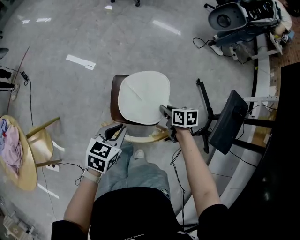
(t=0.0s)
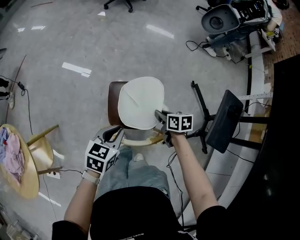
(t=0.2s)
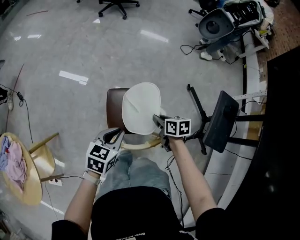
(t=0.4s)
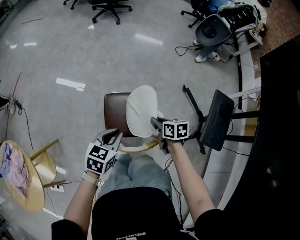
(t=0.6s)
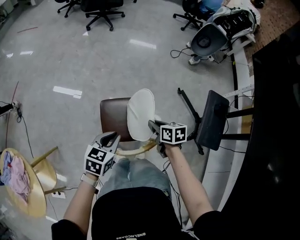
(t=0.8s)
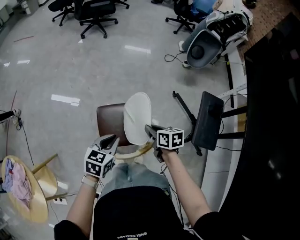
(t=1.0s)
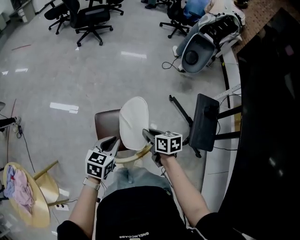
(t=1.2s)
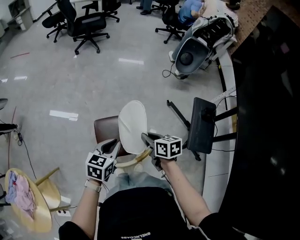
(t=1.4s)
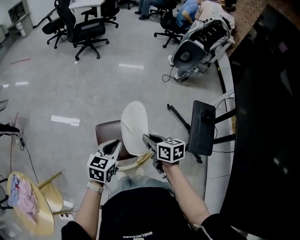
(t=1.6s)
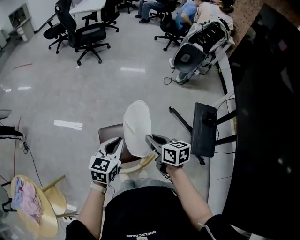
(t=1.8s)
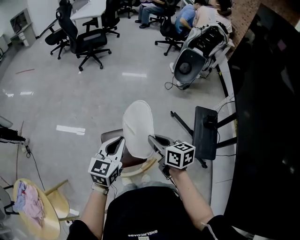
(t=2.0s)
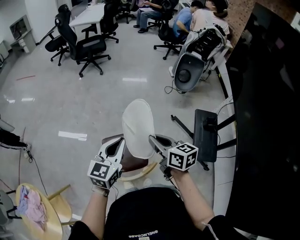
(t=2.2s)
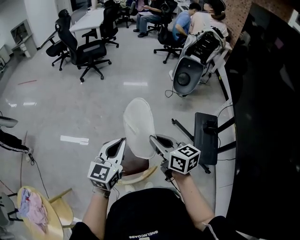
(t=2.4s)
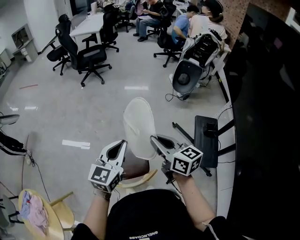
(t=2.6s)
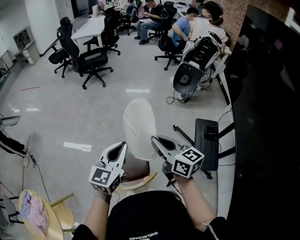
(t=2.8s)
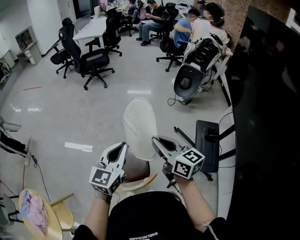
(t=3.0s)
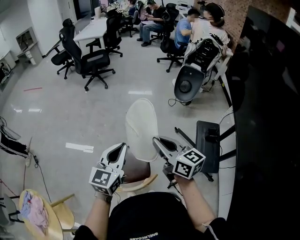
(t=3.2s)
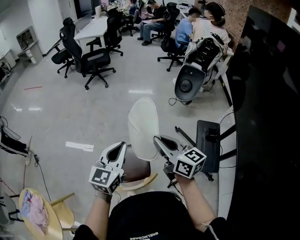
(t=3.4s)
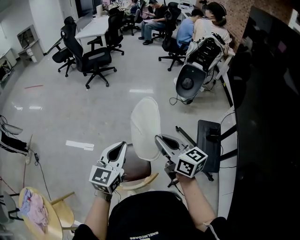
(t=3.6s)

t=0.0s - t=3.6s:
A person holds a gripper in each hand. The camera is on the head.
t=0.0s - t=1.8s: The left gripper heads upward, forward and to the right, covering roughly 20 cm, and turns by roughly 20 degrees; the right gripper is displaced upward by some 25 cm, and changes its angle by some 30 degrees.
t=1.8s - t=3.6s: Both grippers travel together upward, roughly 15 cm. The right gripper rotates some 30 degrees.

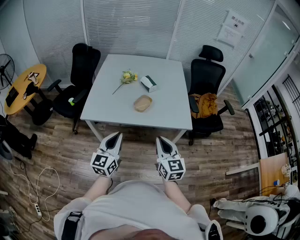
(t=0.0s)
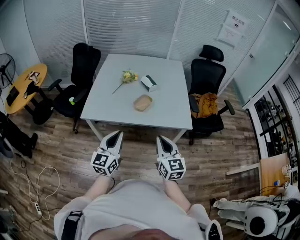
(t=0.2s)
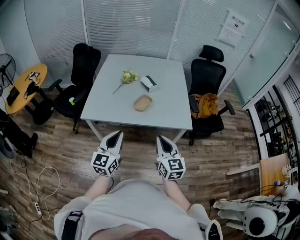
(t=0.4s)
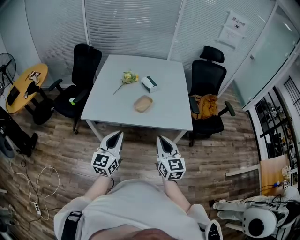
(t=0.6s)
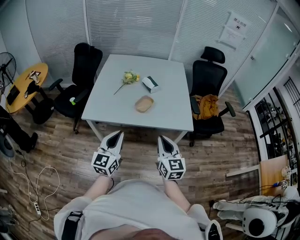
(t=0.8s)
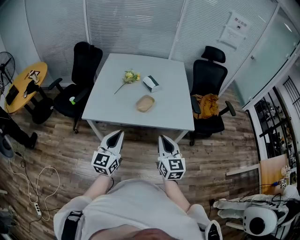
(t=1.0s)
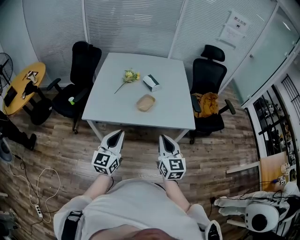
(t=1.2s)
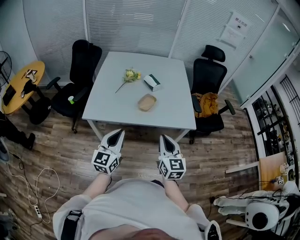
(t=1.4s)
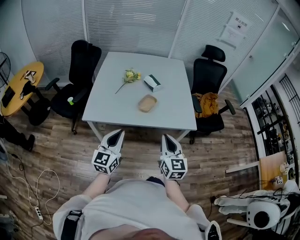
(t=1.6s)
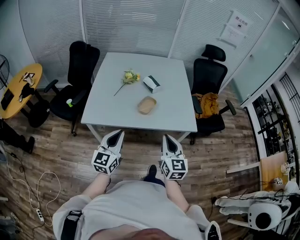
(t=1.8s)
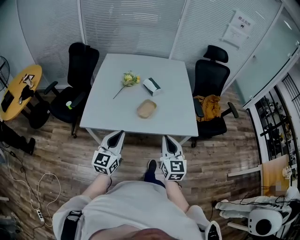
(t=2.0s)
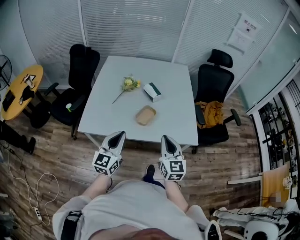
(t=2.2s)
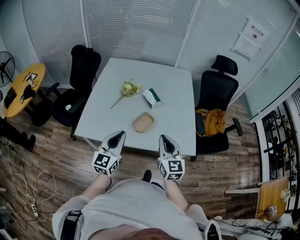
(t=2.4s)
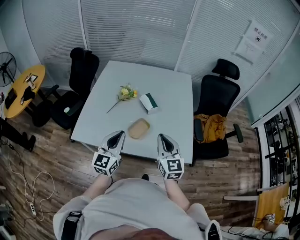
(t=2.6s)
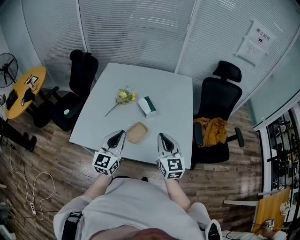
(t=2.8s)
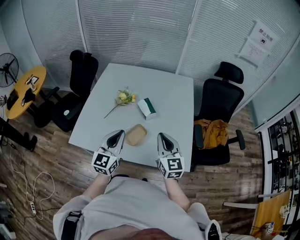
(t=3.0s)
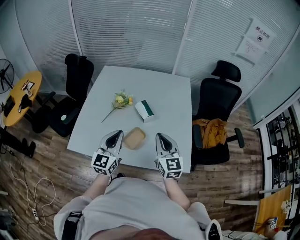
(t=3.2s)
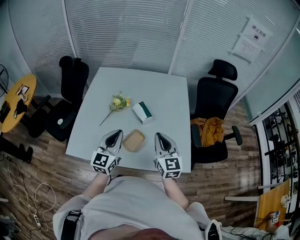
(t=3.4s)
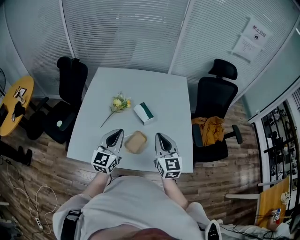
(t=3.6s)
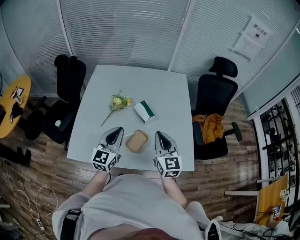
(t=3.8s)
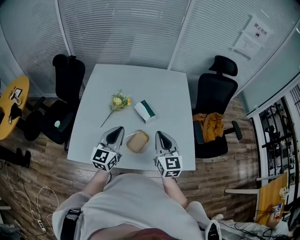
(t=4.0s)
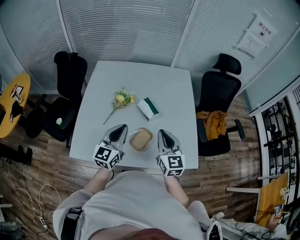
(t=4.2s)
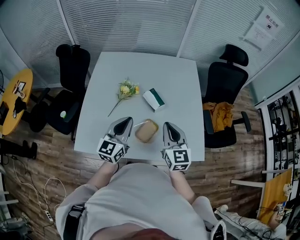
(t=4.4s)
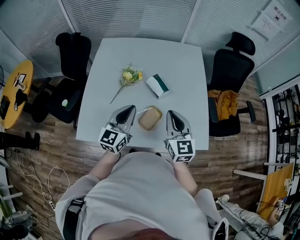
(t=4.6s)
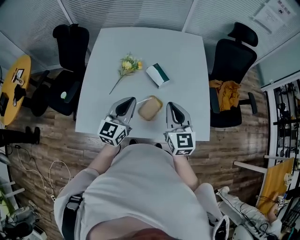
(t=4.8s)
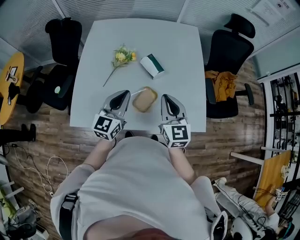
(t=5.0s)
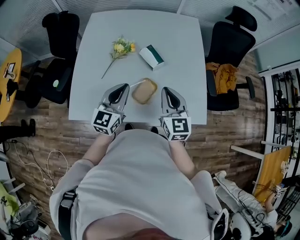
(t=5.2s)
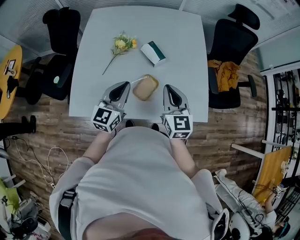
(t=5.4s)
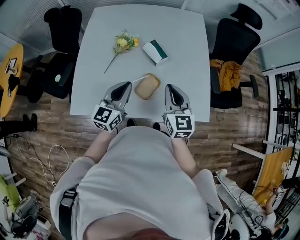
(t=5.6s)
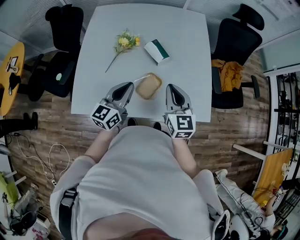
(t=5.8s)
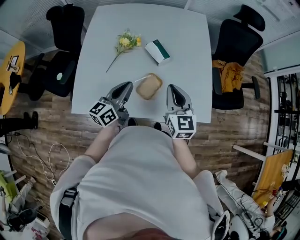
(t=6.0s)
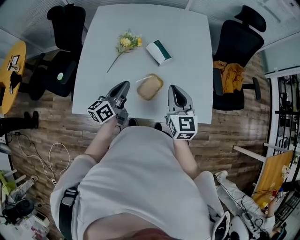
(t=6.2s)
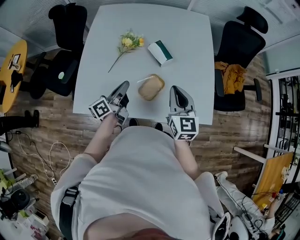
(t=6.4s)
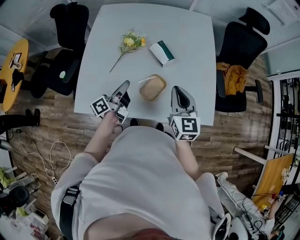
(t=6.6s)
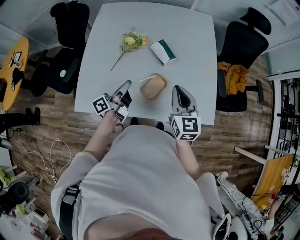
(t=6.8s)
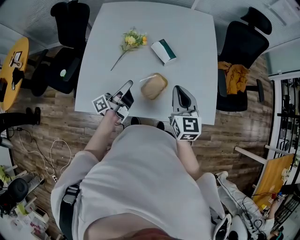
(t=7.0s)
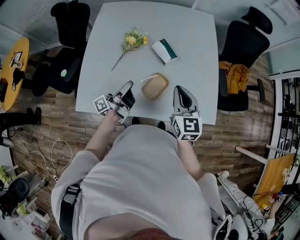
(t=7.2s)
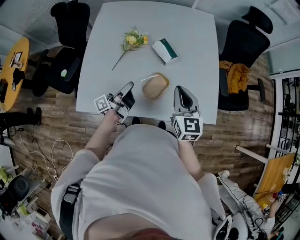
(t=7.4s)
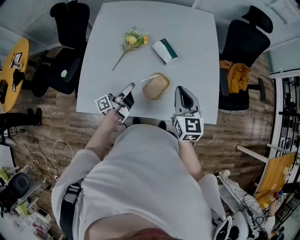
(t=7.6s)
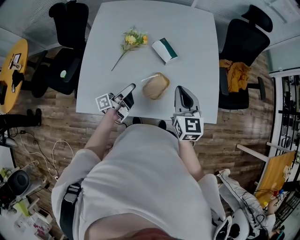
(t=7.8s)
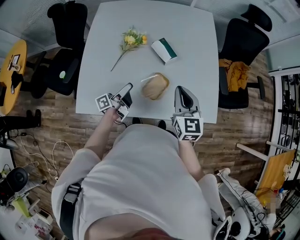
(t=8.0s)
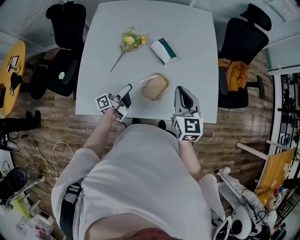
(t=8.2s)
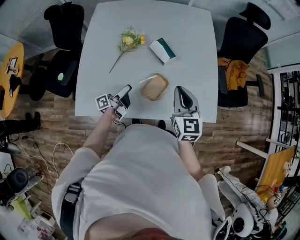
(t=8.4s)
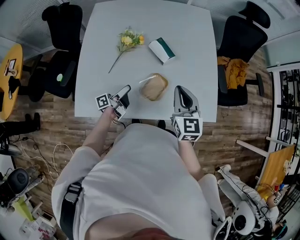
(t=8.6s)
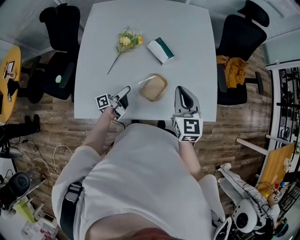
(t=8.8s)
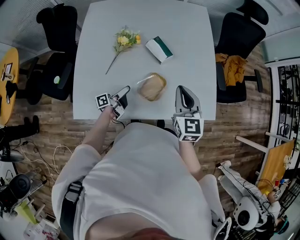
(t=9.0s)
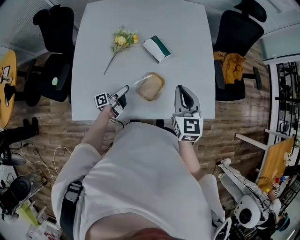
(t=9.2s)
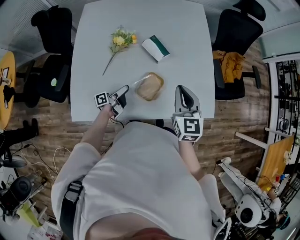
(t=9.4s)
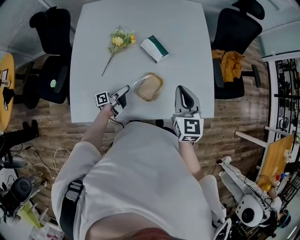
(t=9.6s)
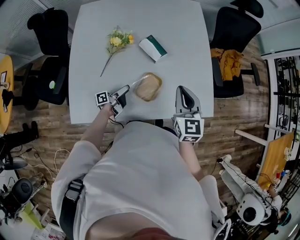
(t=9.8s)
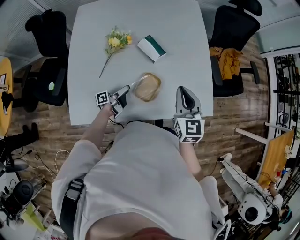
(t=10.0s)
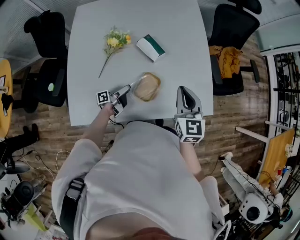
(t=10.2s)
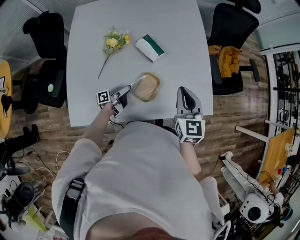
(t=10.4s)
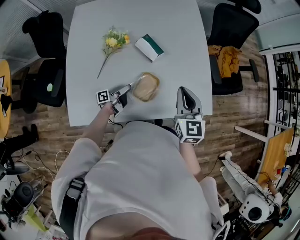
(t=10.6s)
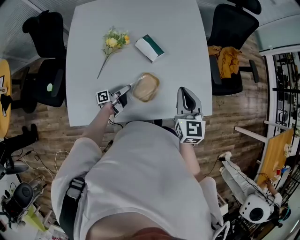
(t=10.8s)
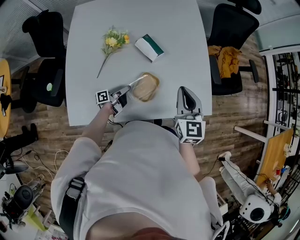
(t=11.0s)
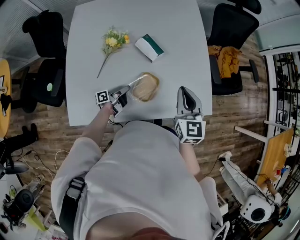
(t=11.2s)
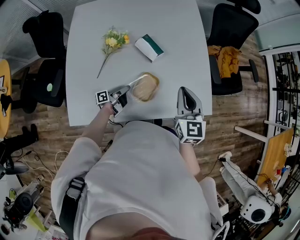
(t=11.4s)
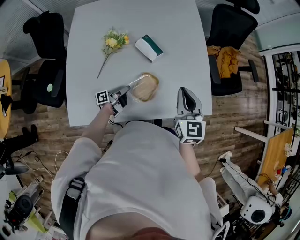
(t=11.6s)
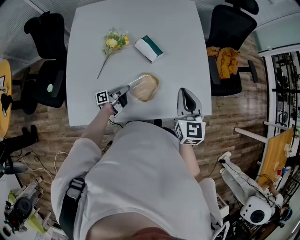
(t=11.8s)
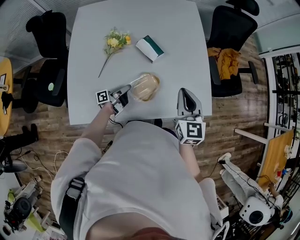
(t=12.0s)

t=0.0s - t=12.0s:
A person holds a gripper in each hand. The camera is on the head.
t=0.0s - t=1.6s: The left gripper heads to the left, covering some 5 cm.
t=1.6s - t=3.0s: The left gripper goes roughly 30 cm forward and to the right, while the right gripper travels forward by roughly 30 cm.
t=3.0s - t=4.4s: The left gripper travels forward and to the left by roughly 10 cm; the right gripper shifts roughly 10 cm to the left and forward.
t=4.4s - t=6.0s: The right gripper moves about 5 cm. The left gripper goes about 10 cm downward, and changes its angle by some 30 degrees.
t=6.0s - t=7.6s: The left gripper moves downward, about 10 cm, and rotates around the line of its fingers by some 50 degrees, counterclockwise from behind.
t=7.6s - t=9.0s: The left gripper heads downward, covering approximately 10 cm, and opens up.
t=9.0s - t=10.4s: The left gripper changes place by about 5 cm.
t=10.4s - t=12.0s: The left gripper closes.

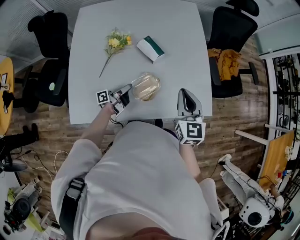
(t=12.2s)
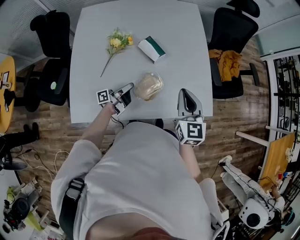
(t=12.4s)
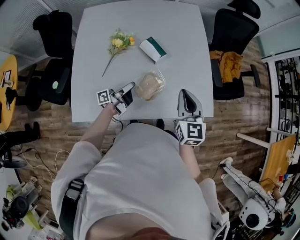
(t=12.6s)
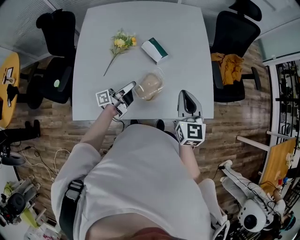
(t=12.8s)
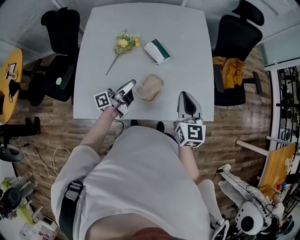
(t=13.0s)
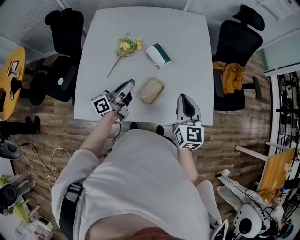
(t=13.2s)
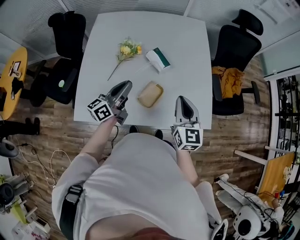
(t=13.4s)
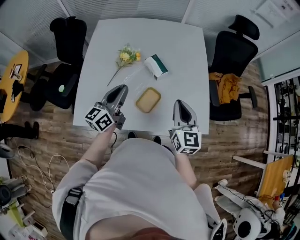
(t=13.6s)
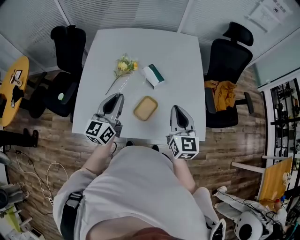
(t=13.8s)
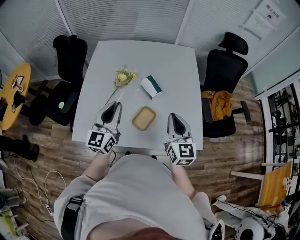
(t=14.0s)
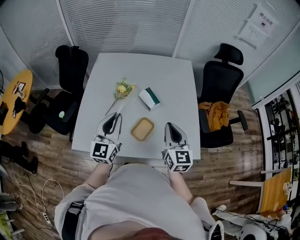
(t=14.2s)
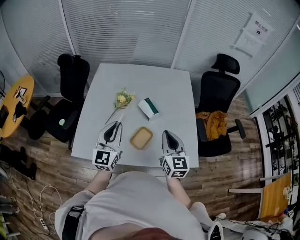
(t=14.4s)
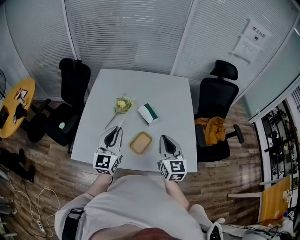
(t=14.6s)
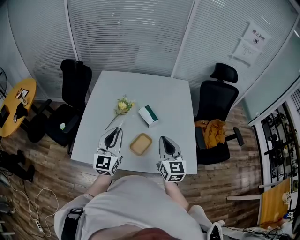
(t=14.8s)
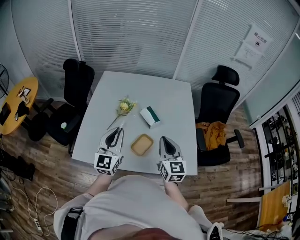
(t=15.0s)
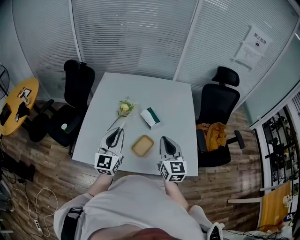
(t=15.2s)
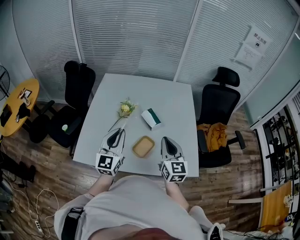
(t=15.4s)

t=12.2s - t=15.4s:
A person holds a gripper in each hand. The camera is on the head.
t=12.2s - t=13.8s: The left gripper moves upward, about 30 cm, and rolls clockwise, seen from behind, by roughly 70 degrees. Meanwhile the right gripper travels upward by some 5 cm.
t=13.8s - t=15.4s: The left gripper changes place by some 5 cm, and turns by roughly 20 degrees.

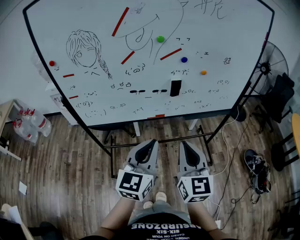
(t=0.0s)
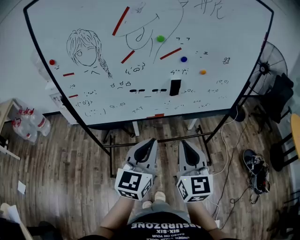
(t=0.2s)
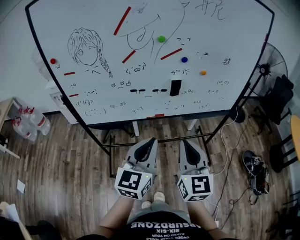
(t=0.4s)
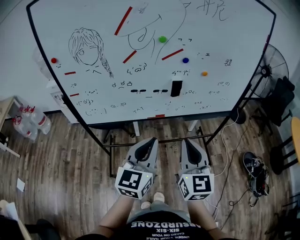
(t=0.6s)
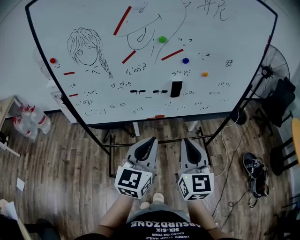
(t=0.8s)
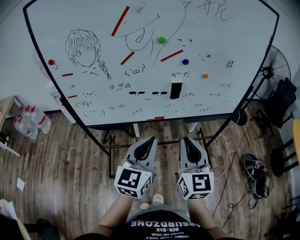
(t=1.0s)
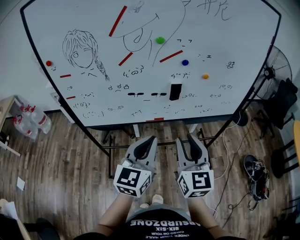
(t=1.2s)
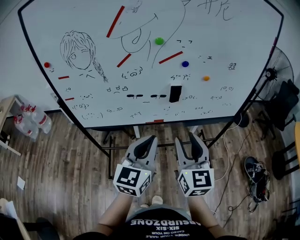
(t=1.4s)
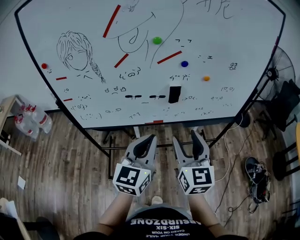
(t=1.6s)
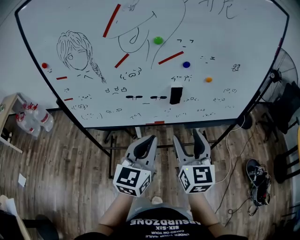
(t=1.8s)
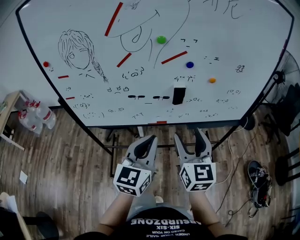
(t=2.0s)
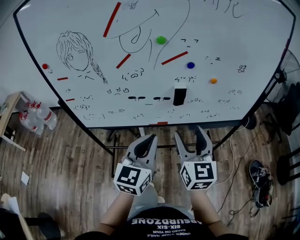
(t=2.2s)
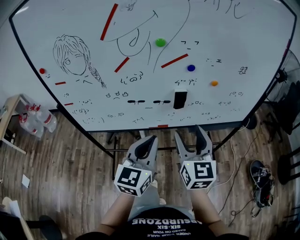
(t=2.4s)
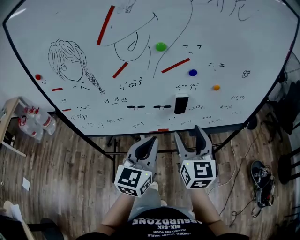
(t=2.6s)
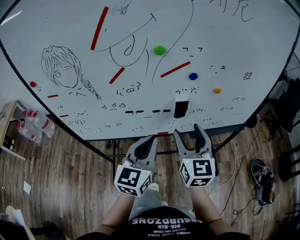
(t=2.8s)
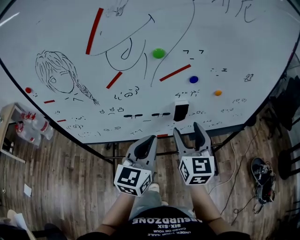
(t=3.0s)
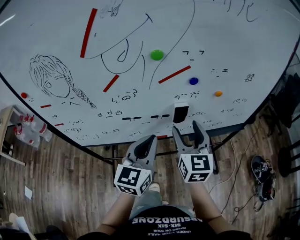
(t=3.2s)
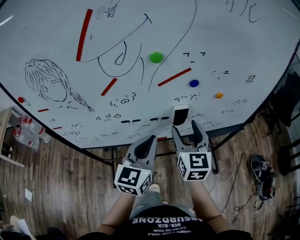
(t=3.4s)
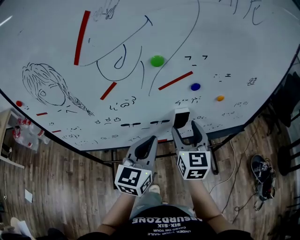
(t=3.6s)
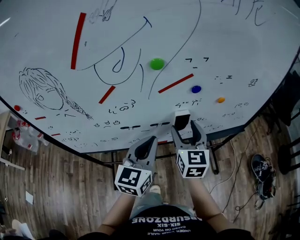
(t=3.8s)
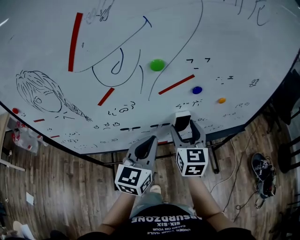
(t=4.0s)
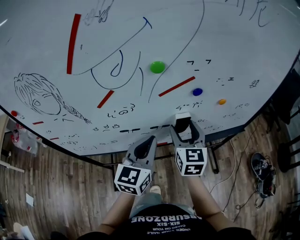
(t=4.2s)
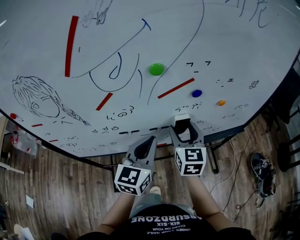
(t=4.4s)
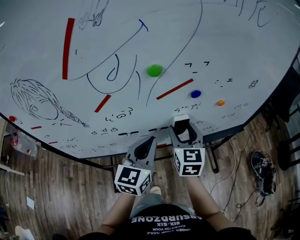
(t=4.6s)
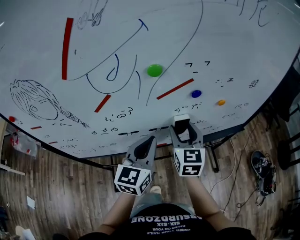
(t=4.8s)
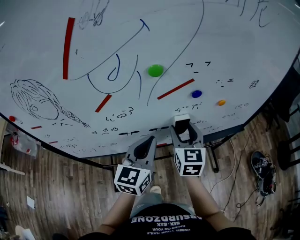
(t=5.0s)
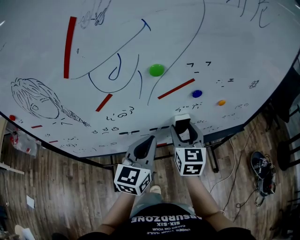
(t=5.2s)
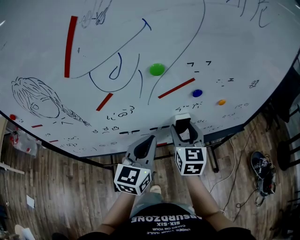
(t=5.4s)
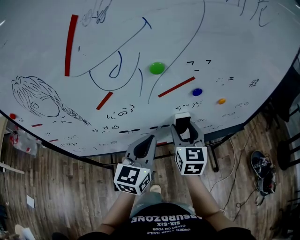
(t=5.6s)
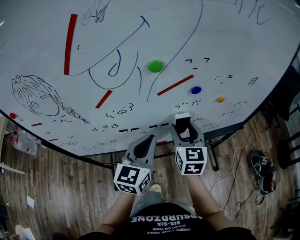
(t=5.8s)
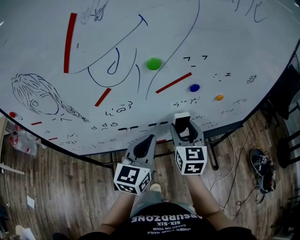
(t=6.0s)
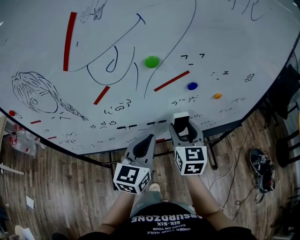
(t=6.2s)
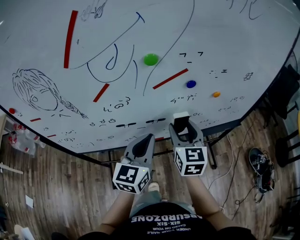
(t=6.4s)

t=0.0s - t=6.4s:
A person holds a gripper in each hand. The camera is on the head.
t=0.0s - t=1.6s: Both grippers travel together forward, some 10 cm. The right gripper opens up.
t=1.6s - t=3.2s: The two grippers go some 15 cm forward.
t=3.2s - t=4.8s: Both grippers travel together forward, approximately 5 cm.
t=4.8s - t=6.4s: There are only small adjustments of the grippers.
